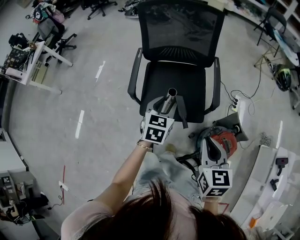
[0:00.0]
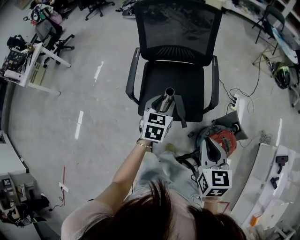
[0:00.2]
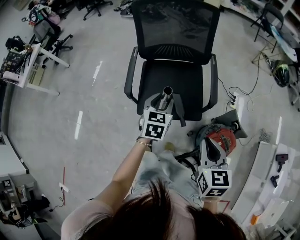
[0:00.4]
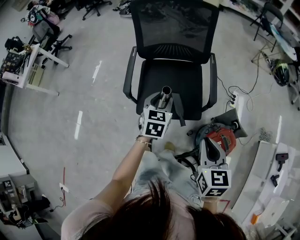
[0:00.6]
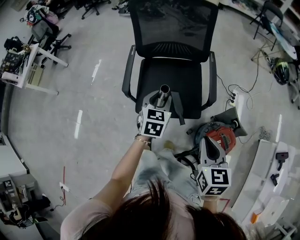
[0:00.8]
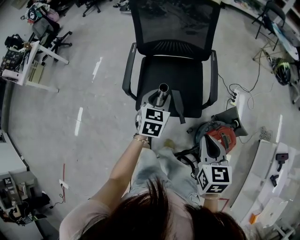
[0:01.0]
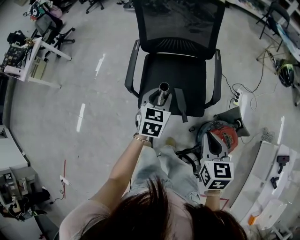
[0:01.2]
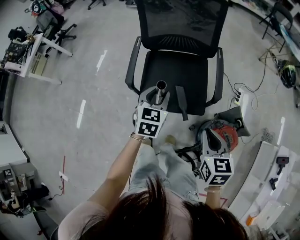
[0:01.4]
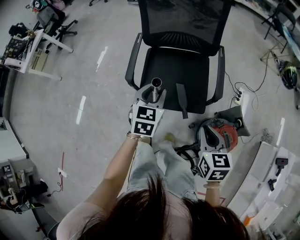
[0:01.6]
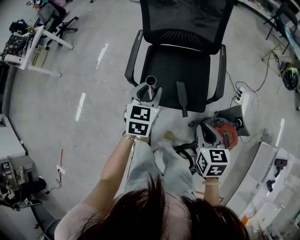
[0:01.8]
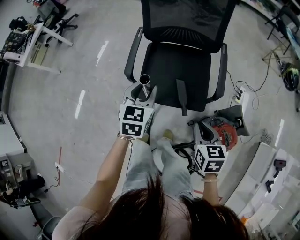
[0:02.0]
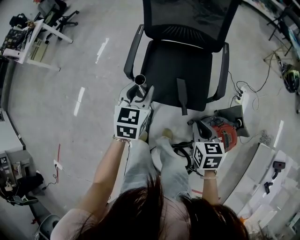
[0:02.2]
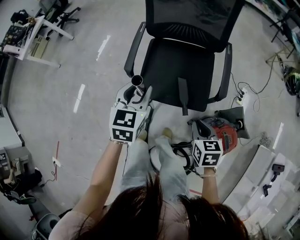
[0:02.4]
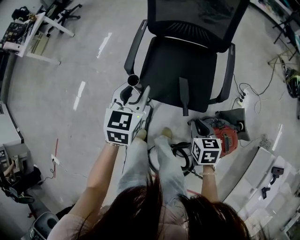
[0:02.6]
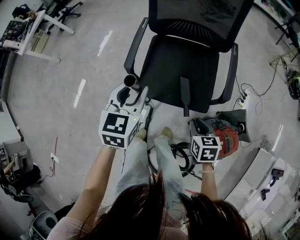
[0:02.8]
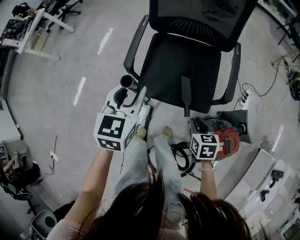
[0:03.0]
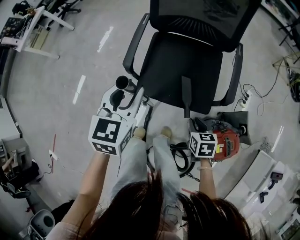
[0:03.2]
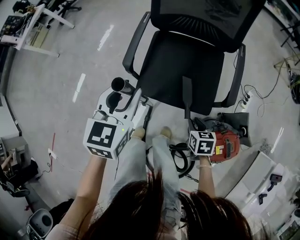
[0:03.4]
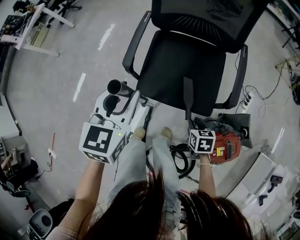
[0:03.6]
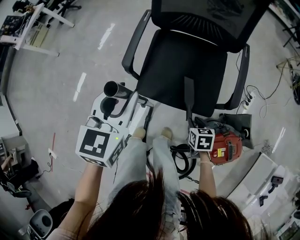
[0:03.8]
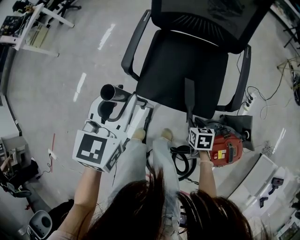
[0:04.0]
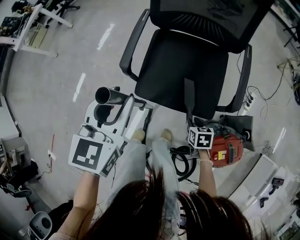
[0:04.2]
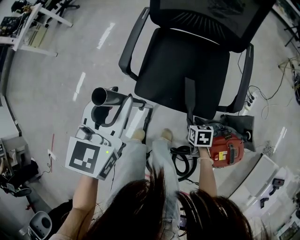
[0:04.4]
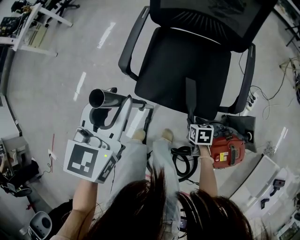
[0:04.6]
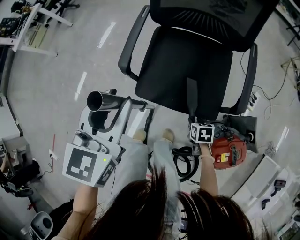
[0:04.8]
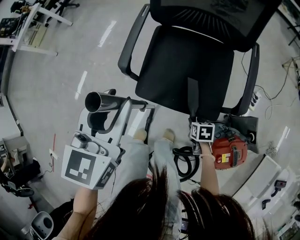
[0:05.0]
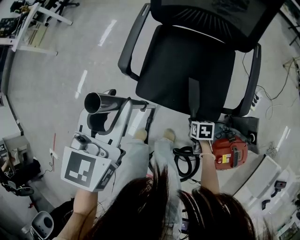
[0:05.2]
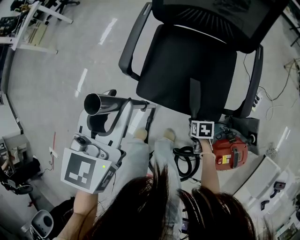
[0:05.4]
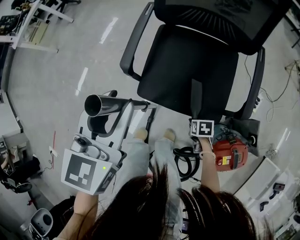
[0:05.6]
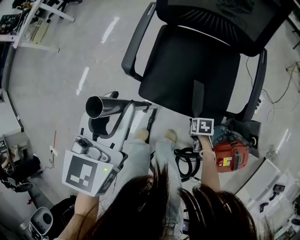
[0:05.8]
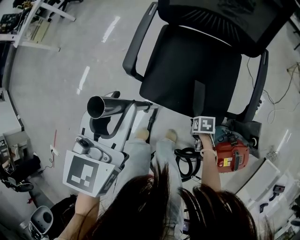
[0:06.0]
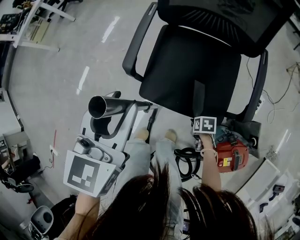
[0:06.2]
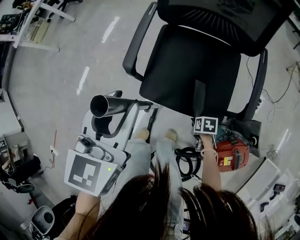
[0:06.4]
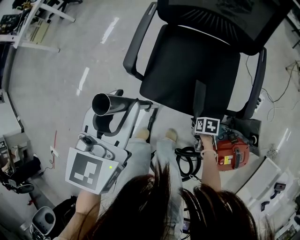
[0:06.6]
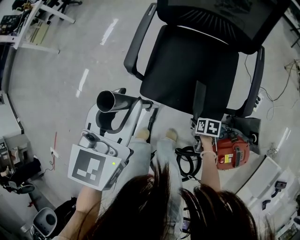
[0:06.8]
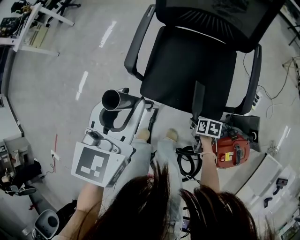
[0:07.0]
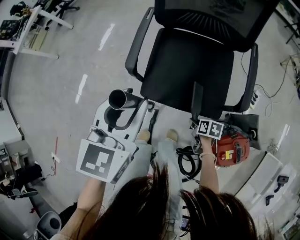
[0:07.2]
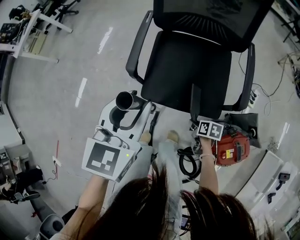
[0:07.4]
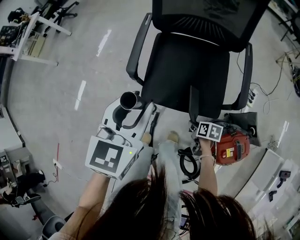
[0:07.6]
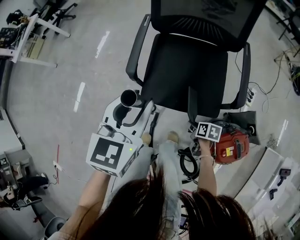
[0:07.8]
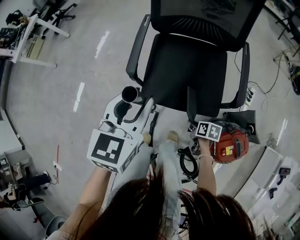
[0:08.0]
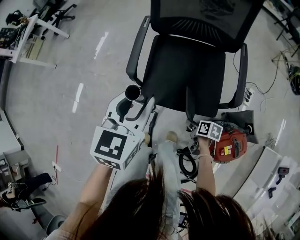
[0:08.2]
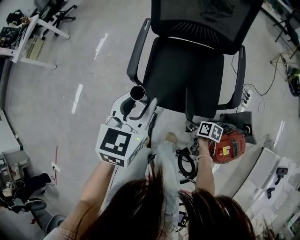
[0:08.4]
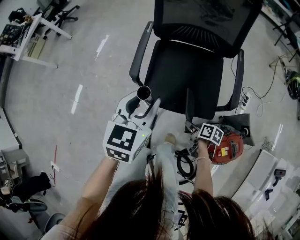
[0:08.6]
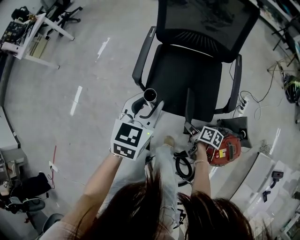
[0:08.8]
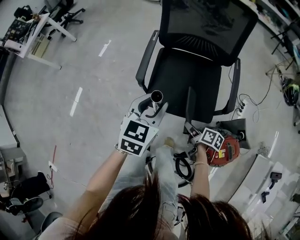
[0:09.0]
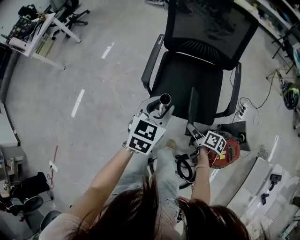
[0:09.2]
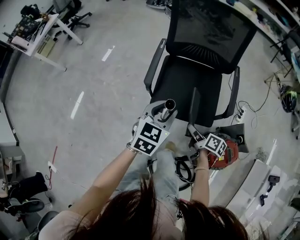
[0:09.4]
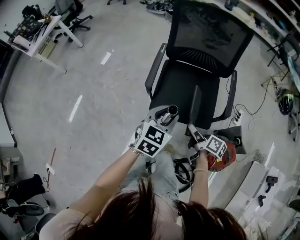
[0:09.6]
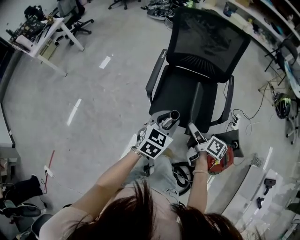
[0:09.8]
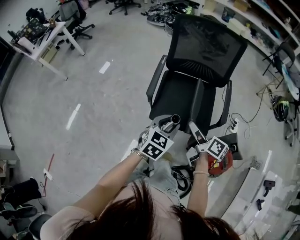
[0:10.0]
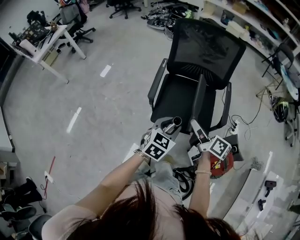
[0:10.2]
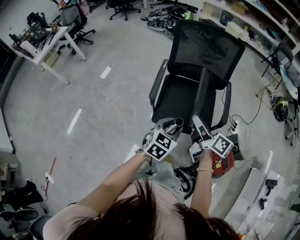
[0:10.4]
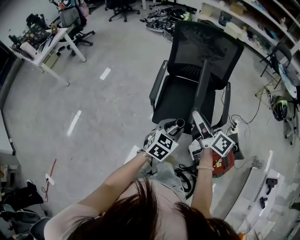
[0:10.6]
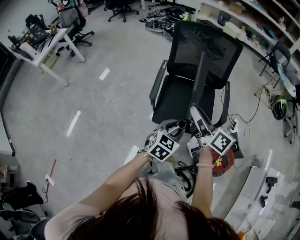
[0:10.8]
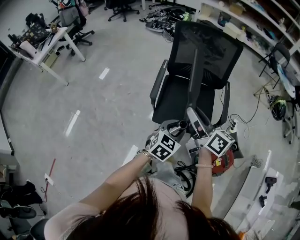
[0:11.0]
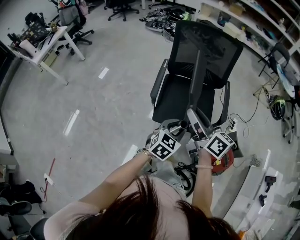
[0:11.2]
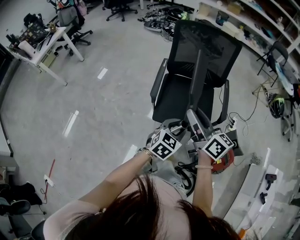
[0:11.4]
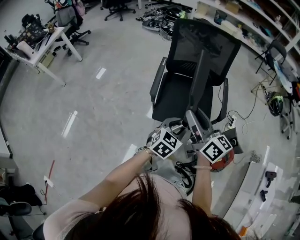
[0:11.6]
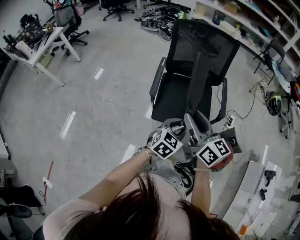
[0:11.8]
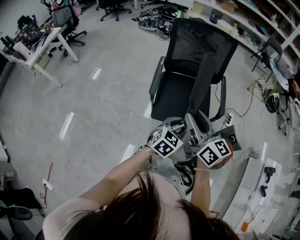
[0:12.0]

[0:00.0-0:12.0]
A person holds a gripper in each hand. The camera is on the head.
0:00.0 to 0:01.6: The right gripper is displaced downward by roughly 10 cm.
0:01.6 to 0:03.0: The left gripper goes approximately 5 cm to the left. The right gripper goes approximately 20 cm downward.
0:03.0 to 0:04.4: The right gripper heads downward, covering roughly 15 cm.
0:04.4 to 0:06.0: The right gripper is displaced downward by some 10 cm.
0:06.0 to 0:07.6: The right gripper moves upward, about 10 cm, and rotates about 30 degrees.
0:07.6 to 0:09.0: The right gripper is displaced upward by some 15 cm, and changes its angle by some 30 degrees.
0:09.0 to 0:10.4: The right gripper is displaced upward by about 30 cm, and points its fingers roughly 30 degrees further upward. The left gripper goes about 10 cm backward.
0:10.4 to 0:12.0: The right gripper is displaced upward, backward and to the left by some 15 cm, and rotates approximately 40 degrees; the left gripper moves backward, roughly 5 cm.

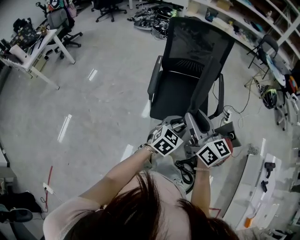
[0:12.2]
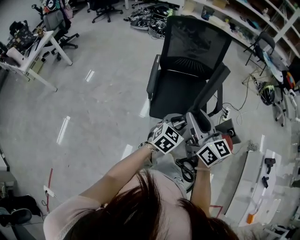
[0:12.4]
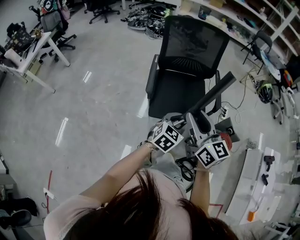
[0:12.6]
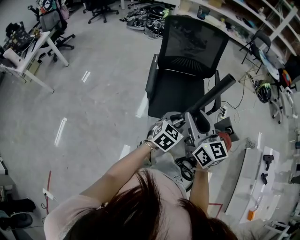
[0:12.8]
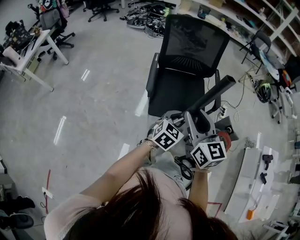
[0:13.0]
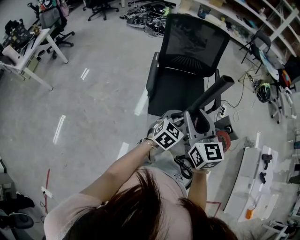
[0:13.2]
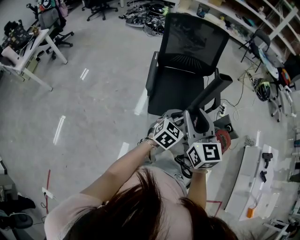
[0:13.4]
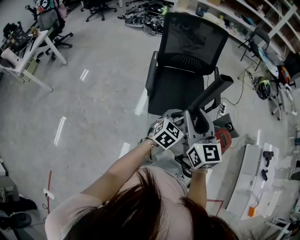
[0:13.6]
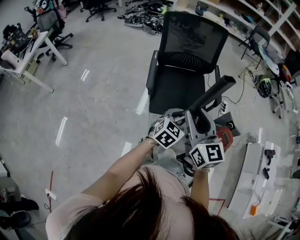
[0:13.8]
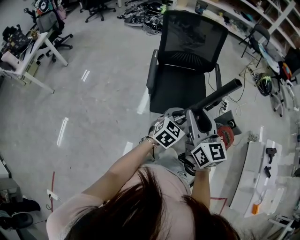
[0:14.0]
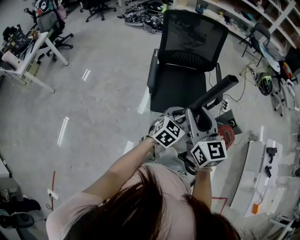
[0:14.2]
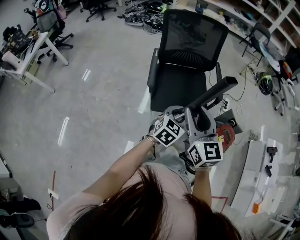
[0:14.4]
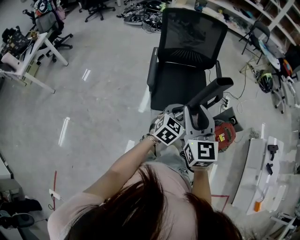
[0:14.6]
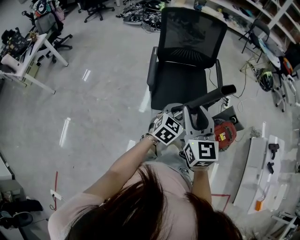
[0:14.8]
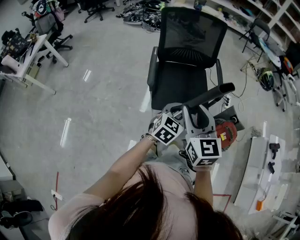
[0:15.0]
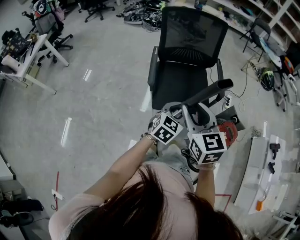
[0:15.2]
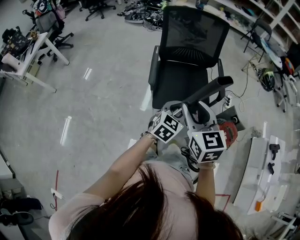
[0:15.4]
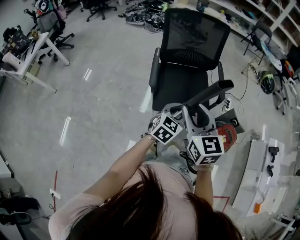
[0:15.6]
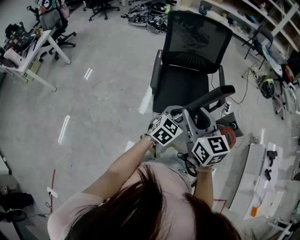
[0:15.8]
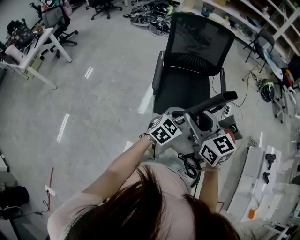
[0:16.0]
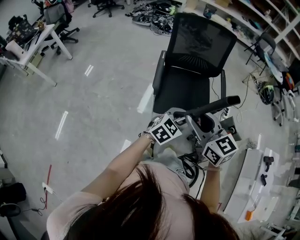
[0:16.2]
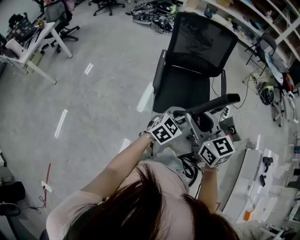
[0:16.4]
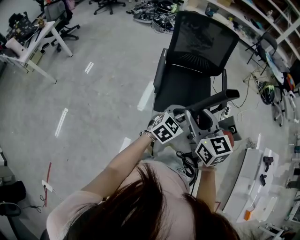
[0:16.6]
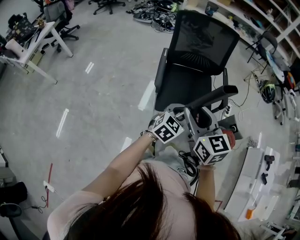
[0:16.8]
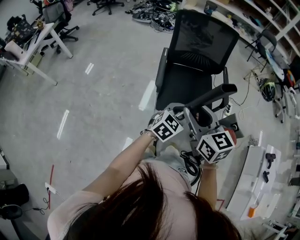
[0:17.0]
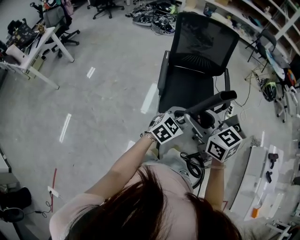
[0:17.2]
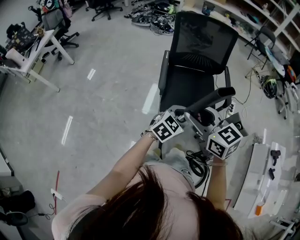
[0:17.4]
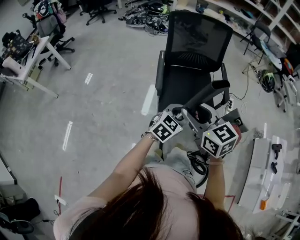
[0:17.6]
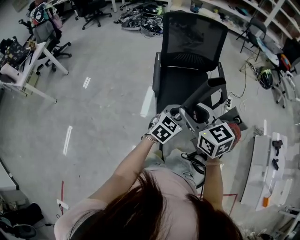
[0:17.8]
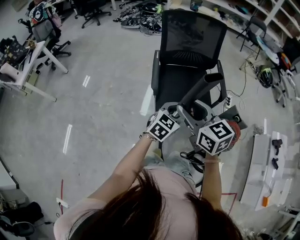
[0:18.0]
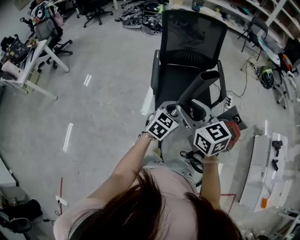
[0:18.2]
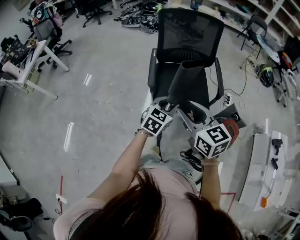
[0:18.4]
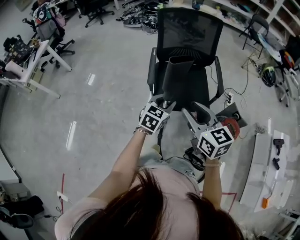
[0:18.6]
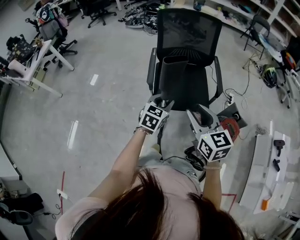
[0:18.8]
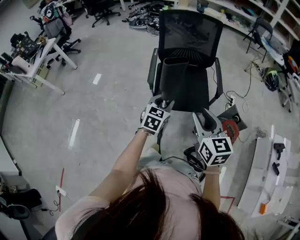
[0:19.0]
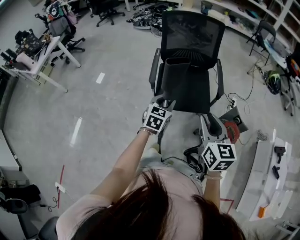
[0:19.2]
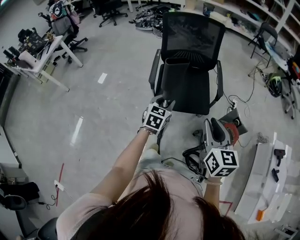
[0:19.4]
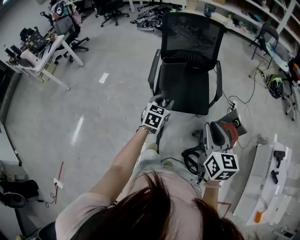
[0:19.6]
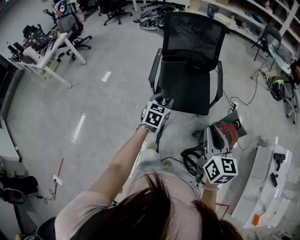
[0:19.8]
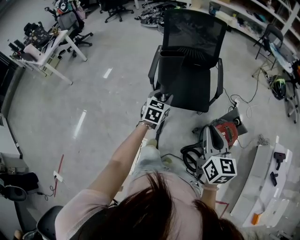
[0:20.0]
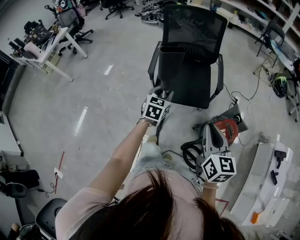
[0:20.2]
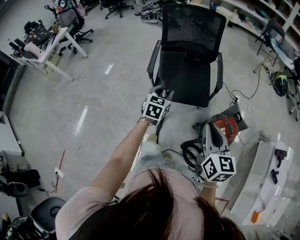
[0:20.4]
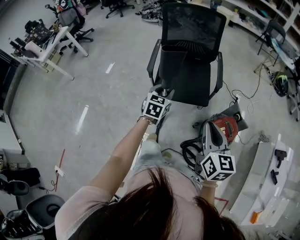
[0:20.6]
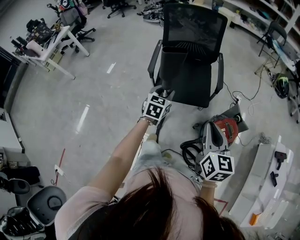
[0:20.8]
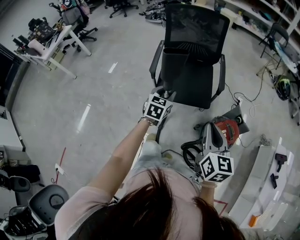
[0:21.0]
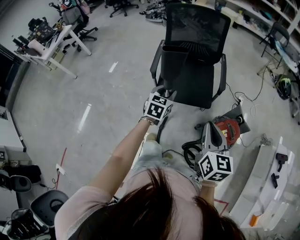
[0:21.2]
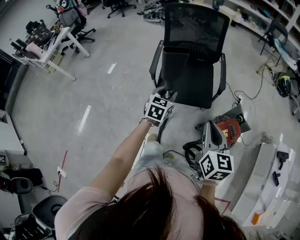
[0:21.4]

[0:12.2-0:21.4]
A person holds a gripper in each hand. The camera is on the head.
0:12.2 to 0:13.8: The right gripper rotates roughly 20 degrees.
0:13.8 to 0:15.2: The grippers move only a little.
0:15.2 to 0:16.8: The grippers move only a little.
0:16.8 to 0:18.4: There are only small adjustments of the grippers.
0:18.4 to 0:19.8: The right gripper is displaced to the right and backward by approximately 25 cm, turns by approximately 20 degrees, and closes; the left gripper shifts approximately 5 cm to the right, and rotates some 20 degrees.
0:19.8 to 0:21.4: The grippers move only a little.

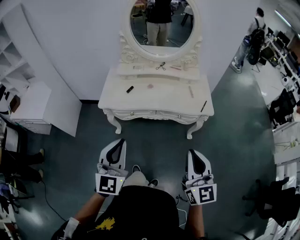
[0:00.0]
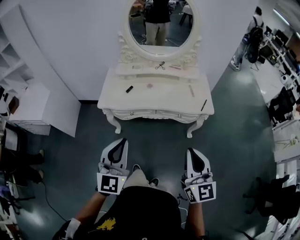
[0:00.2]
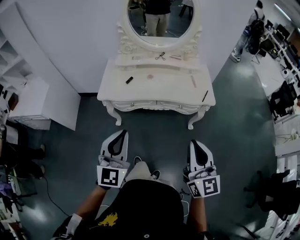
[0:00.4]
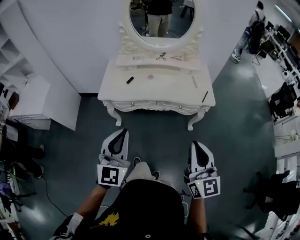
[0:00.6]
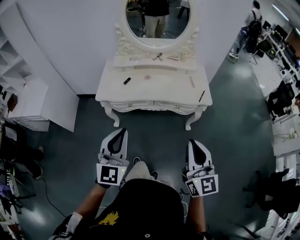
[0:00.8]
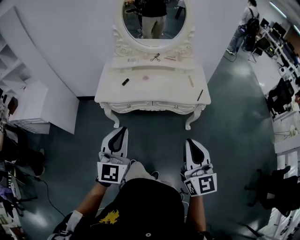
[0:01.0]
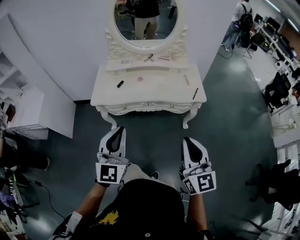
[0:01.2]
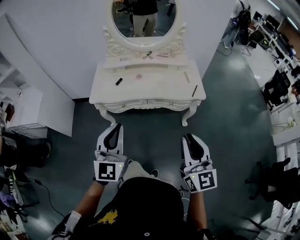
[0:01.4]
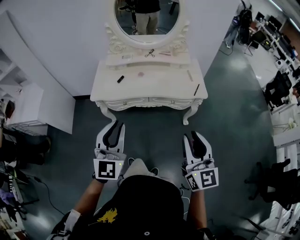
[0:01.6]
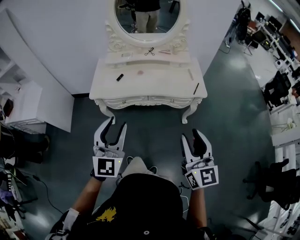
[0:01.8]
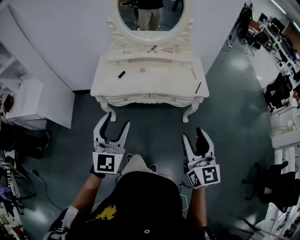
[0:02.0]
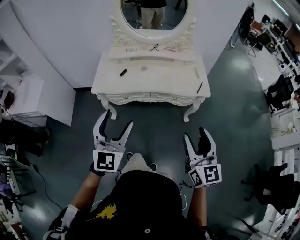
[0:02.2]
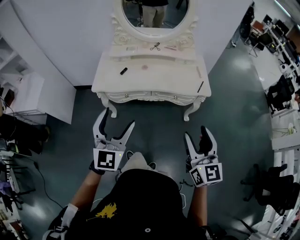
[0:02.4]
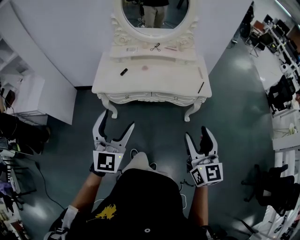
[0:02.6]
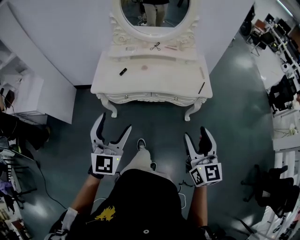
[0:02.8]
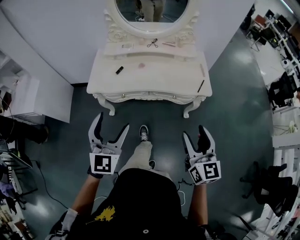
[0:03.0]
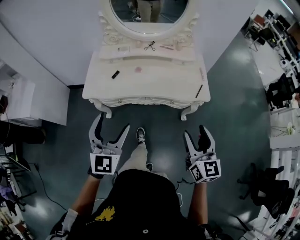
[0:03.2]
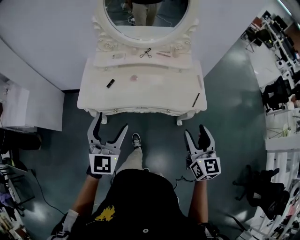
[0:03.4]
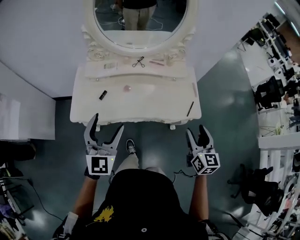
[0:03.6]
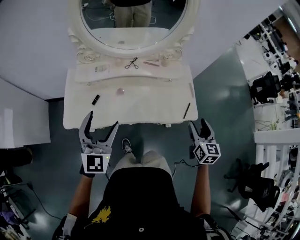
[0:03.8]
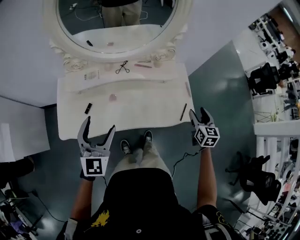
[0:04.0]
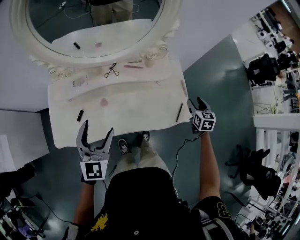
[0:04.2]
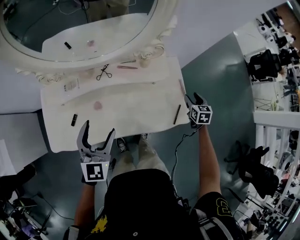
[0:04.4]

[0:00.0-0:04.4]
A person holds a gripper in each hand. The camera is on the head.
0:00.0 to 0:01.4: The grippers move only a little.
0:01.4 to 0:03.0: The right gripper is displaced forward and downward by roughly 10 cm, and opens up; the left gripper travels forward by about 10 cm, and opens its fingers.
0:03.0 to 0:04.4: The two grippers travel together, forward, approximately 60 cm. The right gripper shifts about 30 cm downward, and tilts its fingers approximately 40 degrees downward.
